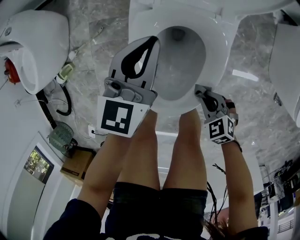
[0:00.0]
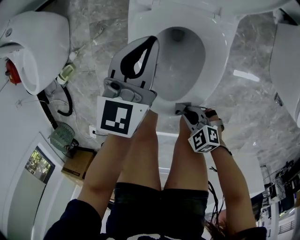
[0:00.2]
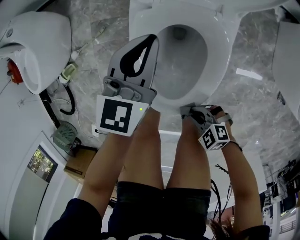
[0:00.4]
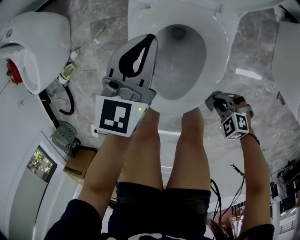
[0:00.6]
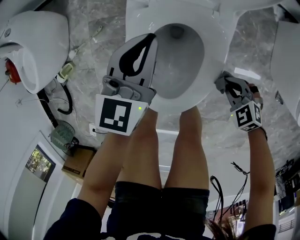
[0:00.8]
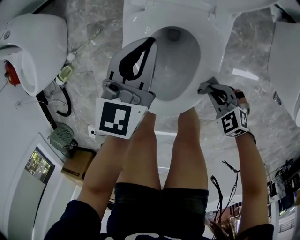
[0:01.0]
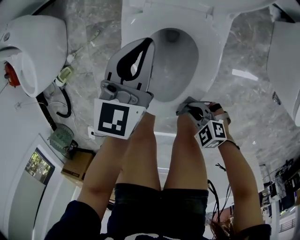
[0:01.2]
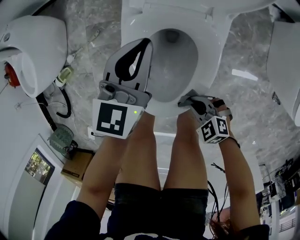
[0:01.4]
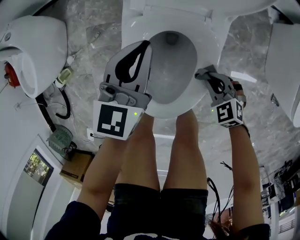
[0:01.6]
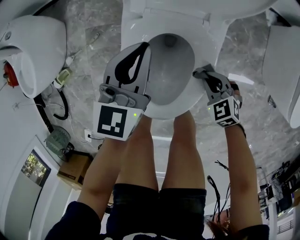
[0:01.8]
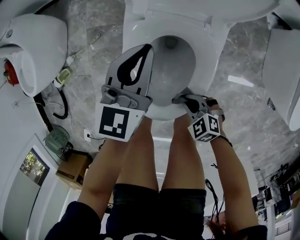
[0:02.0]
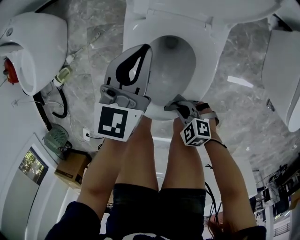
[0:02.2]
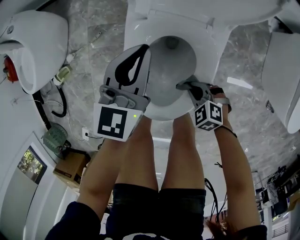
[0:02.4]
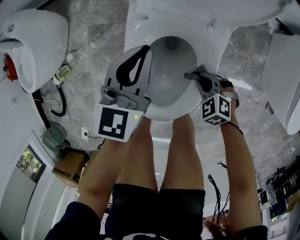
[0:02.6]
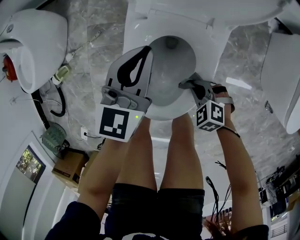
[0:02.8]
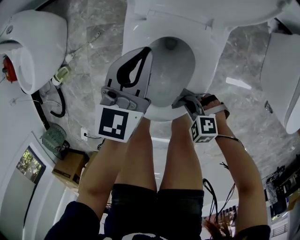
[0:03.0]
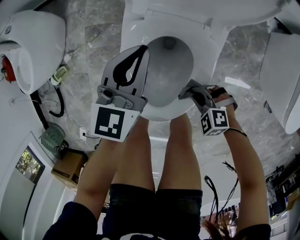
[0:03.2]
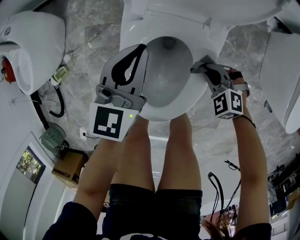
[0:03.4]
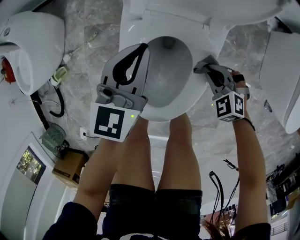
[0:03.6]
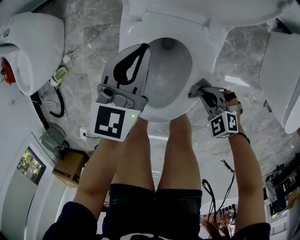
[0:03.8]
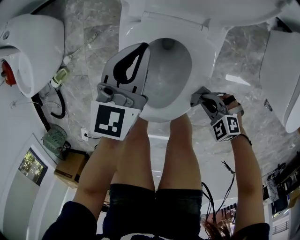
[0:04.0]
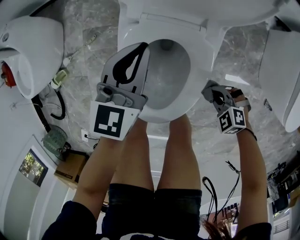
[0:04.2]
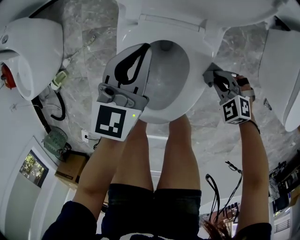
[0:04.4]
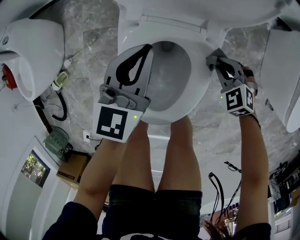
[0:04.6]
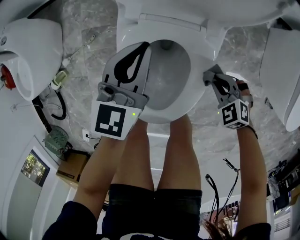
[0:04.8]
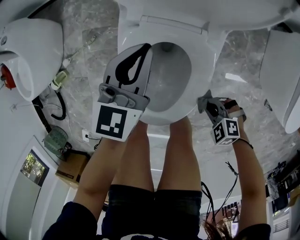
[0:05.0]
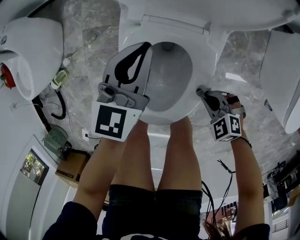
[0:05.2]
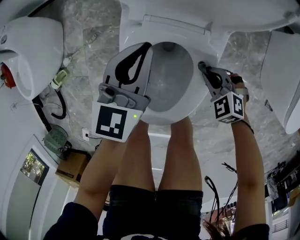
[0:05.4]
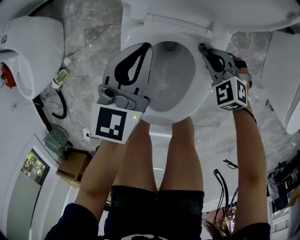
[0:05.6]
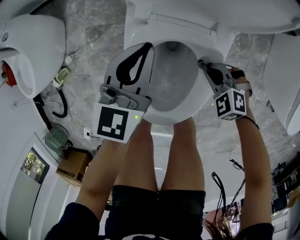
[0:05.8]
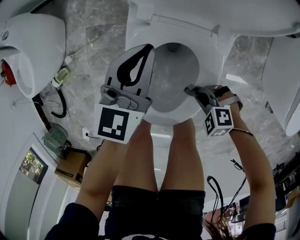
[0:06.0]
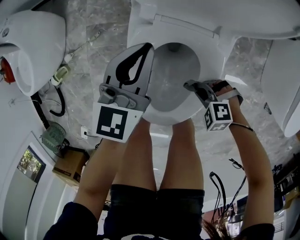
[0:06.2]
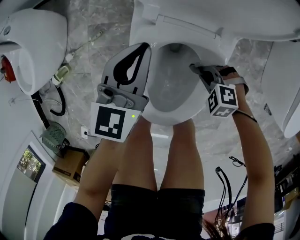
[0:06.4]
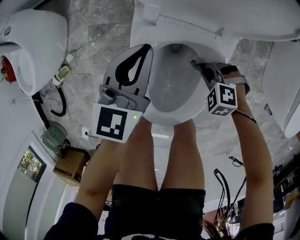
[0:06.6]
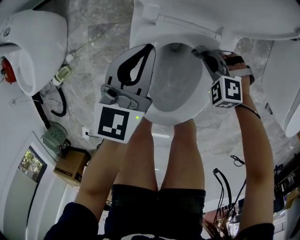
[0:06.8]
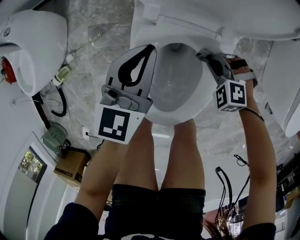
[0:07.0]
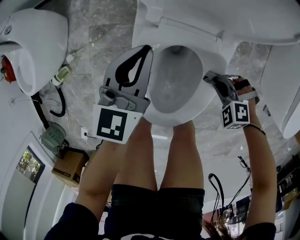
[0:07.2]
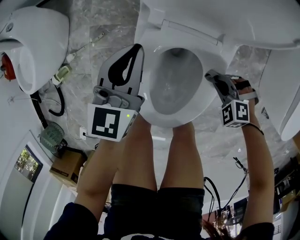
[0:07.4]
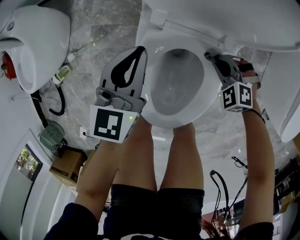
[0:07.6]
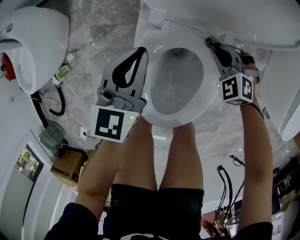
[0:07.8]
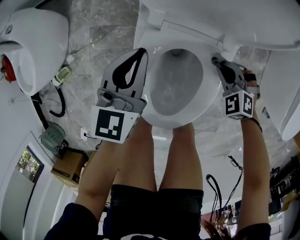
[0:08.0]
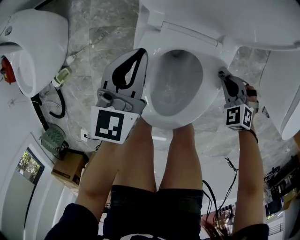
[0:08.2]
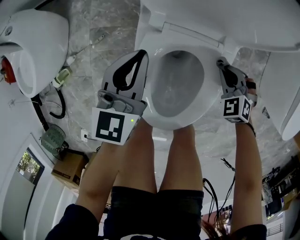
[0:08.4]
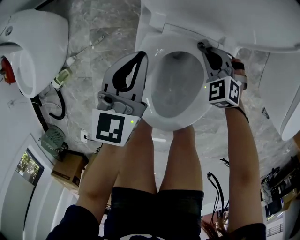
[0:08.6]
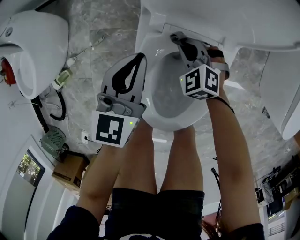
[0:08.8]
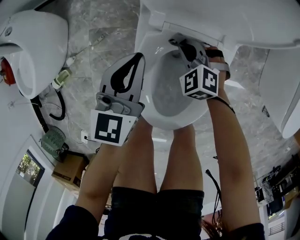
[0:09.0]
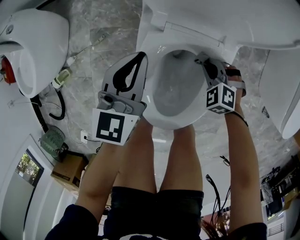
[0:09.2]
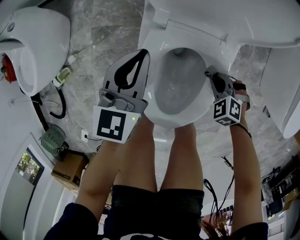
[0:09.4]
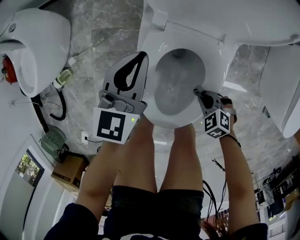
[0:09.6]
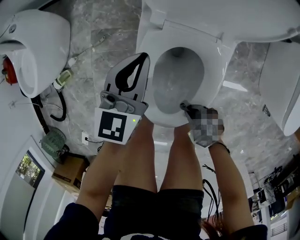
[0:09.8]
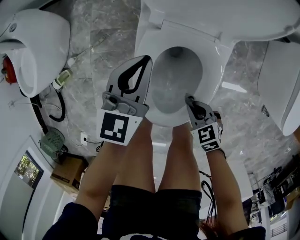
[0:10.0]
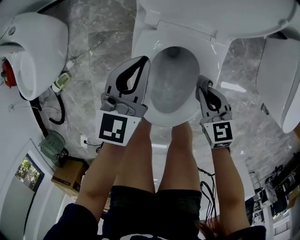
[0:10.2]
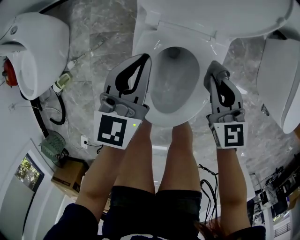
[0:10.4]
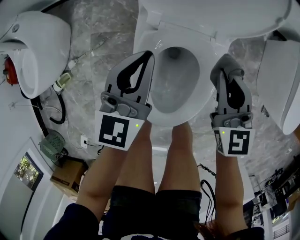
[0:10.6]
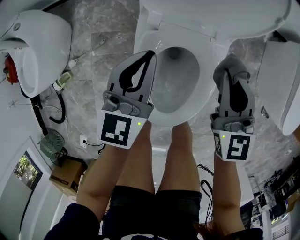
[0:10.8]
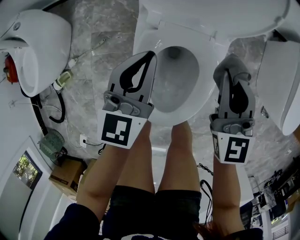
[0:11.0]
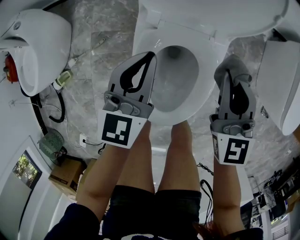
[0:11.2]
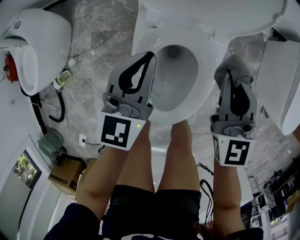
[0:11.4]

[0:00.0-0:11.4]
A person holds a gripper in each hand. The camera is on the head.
0.0 to 1.4 s: The right gripper moves left and right over about 20 cm, changing direction 2 times.
1.4 to 2.8 s: The right gripper swings left and right, approximately 15 cm each way, with 2 reversals.
2.8 to 4.2 s: The right gripper goes left and right, approximately 15 cm each way, reversing 3 times.
4.2 to 5.6 s: The right gripper moves forward and backward over some 20 cm, changing direction 2 times.
5.6 to 7.2 s: The right gripper swivels roughly 30 degrees.
7.2 to 8.6 s: The right gripper swings forward and backward, approximately 15 cm each way, with 2 reversals, and changes its angle by roughly 30 degrees.
8.6 to 10.0 s: The right gripper changes place by approximately 25 cm, and turns by approximately 40 degrees.
10.0 to 11.4 s: The right gripper is displaced upward and forward by some 30 cm, and points its fingers about 40 degrees further upward, while the left gripper moves roughly 5 cm.

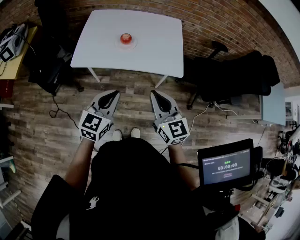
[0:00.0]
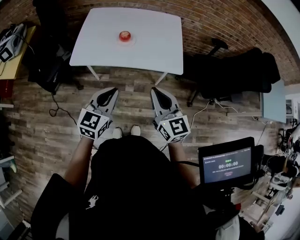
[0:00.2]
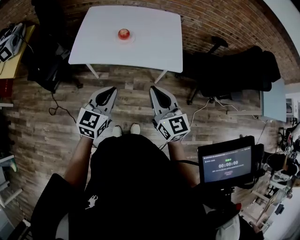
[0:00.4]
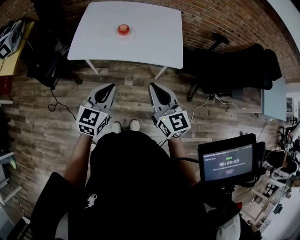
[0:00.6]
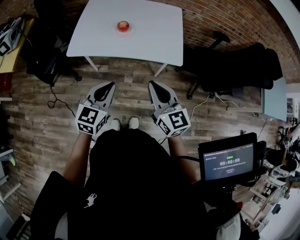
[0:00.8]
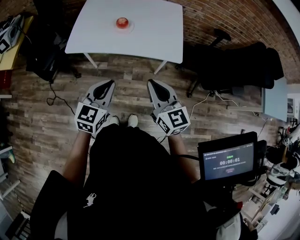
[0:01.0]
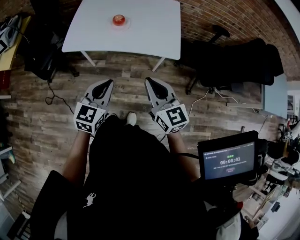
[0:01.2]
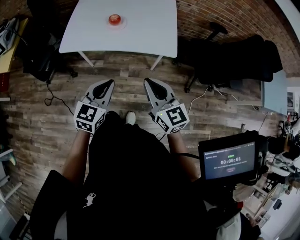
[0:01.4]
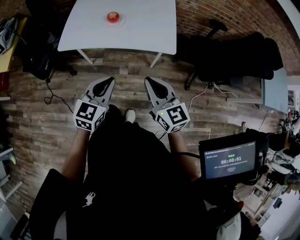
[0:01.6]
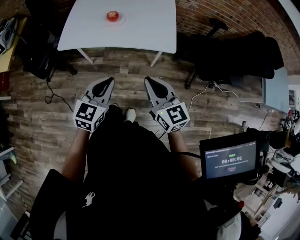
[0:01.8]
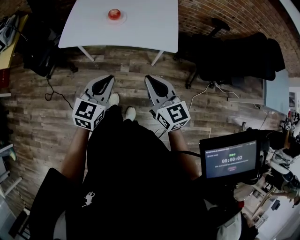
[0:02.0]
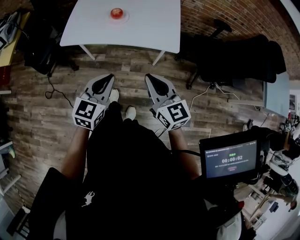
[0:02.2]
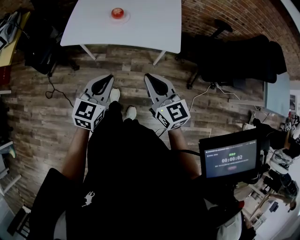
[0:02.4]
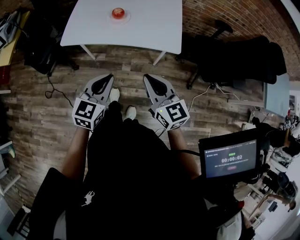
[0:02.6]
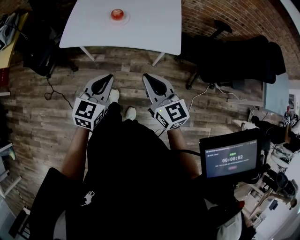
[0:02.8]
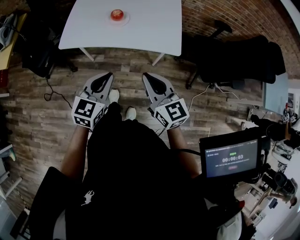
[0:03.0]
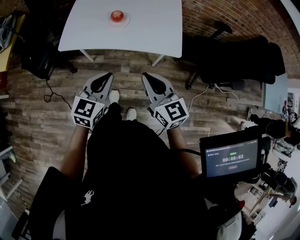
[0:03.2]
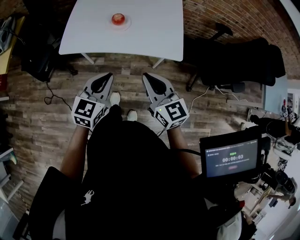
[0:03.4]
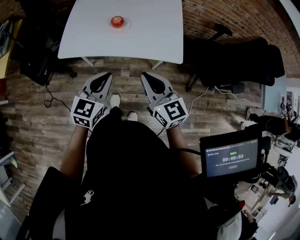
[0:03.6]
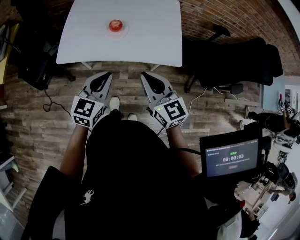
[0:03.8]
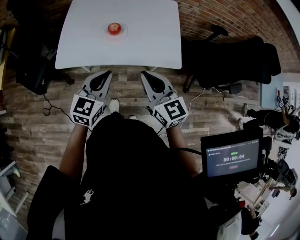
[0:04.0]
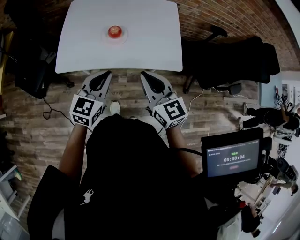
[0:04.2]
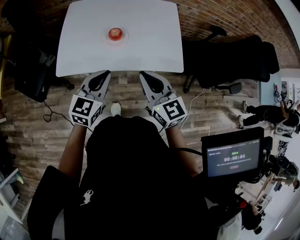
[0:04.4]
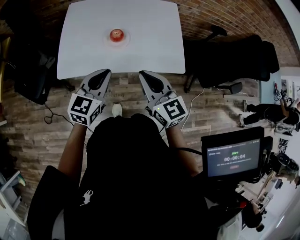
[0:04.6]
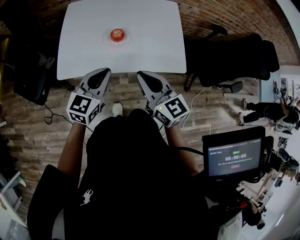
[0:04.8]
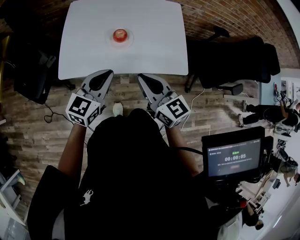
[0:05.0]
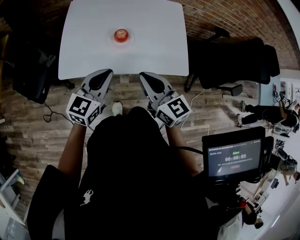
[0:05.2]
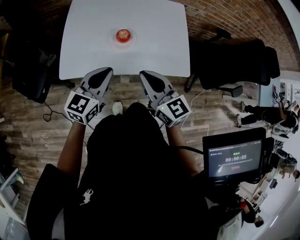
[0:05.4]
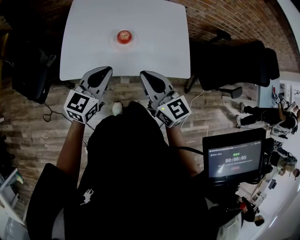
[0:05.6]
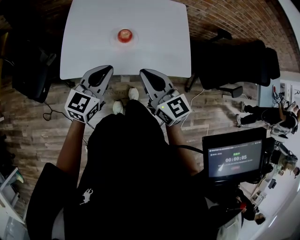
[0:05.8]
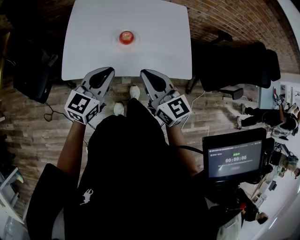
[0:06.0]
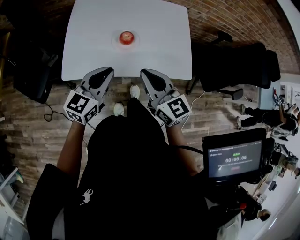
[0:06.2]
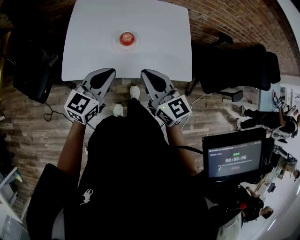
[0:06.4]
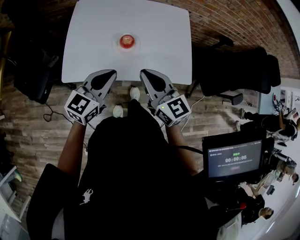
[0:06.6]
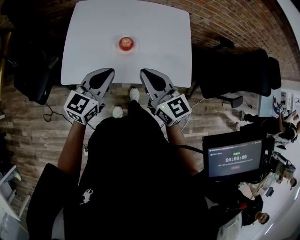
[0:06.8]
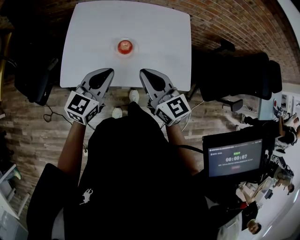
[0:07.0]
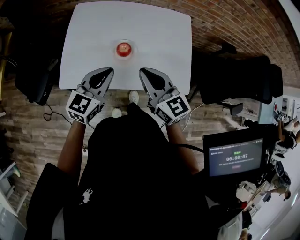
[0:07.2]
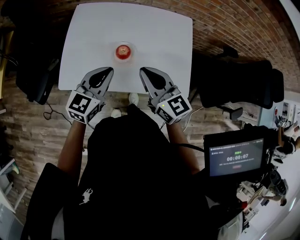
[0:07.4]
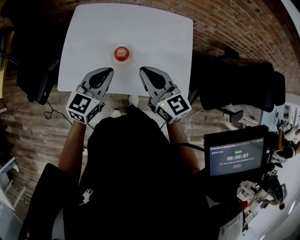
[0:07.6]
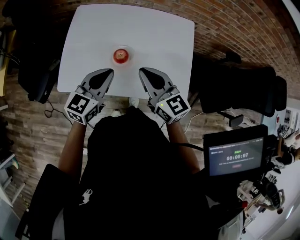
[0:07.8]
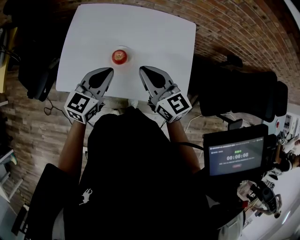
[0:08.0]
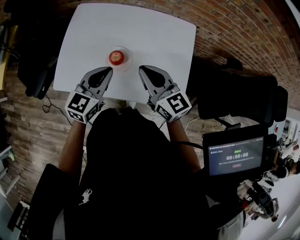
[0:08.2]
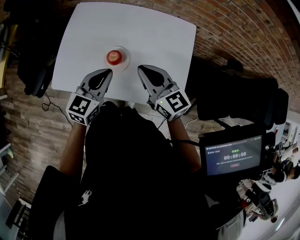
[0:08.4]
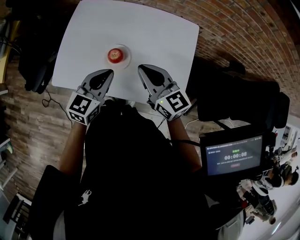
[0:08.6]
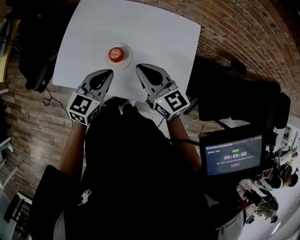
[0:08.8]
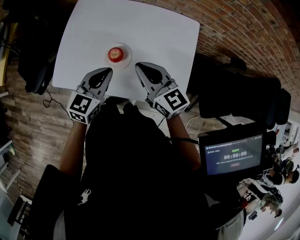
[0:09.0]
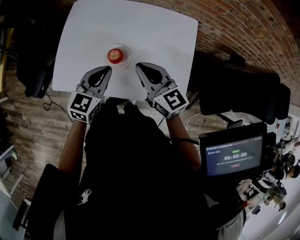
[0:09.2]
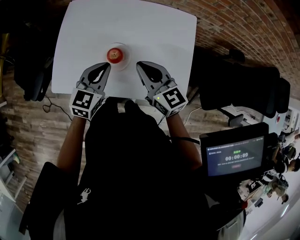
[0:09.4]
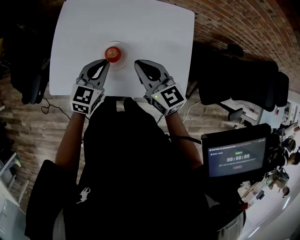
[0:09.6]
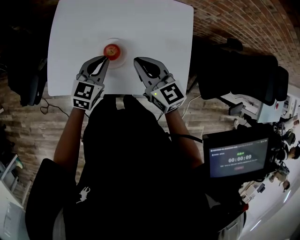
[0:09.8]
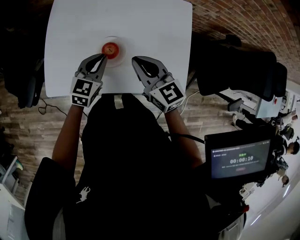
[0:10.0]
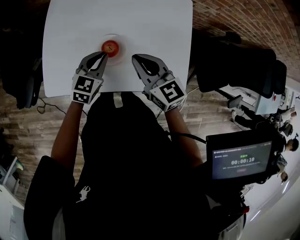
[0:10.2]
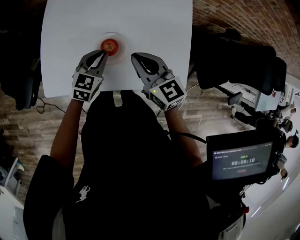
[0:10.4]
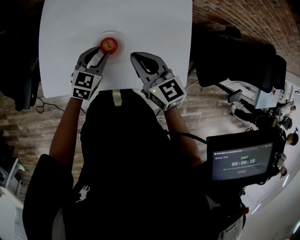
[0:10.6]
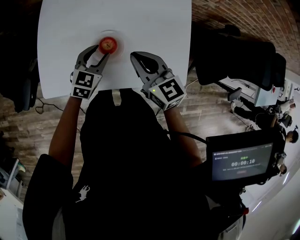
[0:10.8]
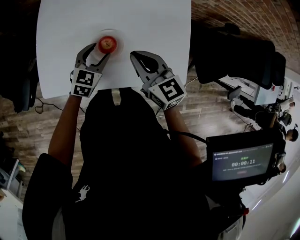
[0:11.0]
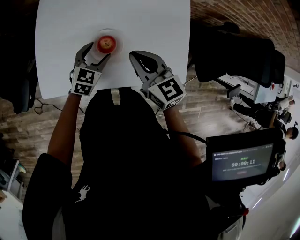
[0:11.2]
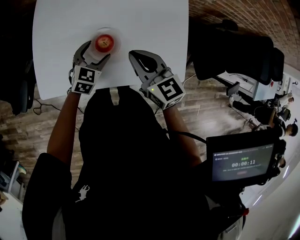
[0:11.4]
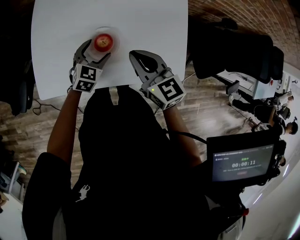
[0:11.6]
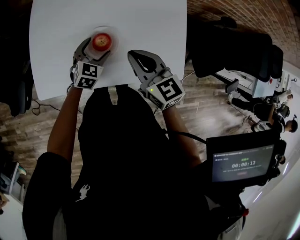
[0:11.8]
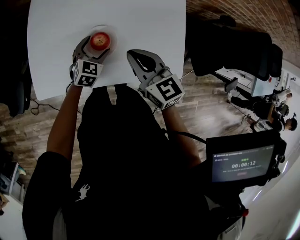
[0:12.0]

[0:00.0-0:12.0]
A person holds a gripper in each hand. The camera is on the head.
0.0 to 1.6 s: The two grippers go some 5 cm to the right.
1.6 to 3.0 s: The grippers make only small movements.
3.0 to 4.4 s: The left gripper moves forward, roughly 15 cm. The right gripper shifts approximately 15 cm forward and to the left.
4.4 to 6.0 s: The two grippers go roughly 10 cm to the left and forward.
6.0 to 7.6 s: The two grippers go approximately 15 cm forward and to the right.
7.6 to 9.0 s: There are only small adjustments of the grippers.
9.0 to 10.4 s: The right gripper moves some 5 cm. The left gripper heads downward and forward, covering some 15 cm.
10.4 to 12.0 s: The left gripper is displaced downward by approximately 10 cm, and opens up.

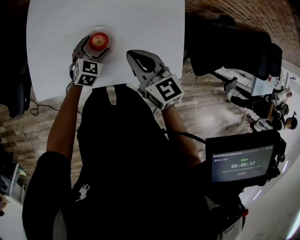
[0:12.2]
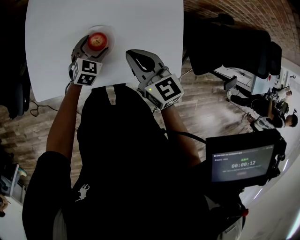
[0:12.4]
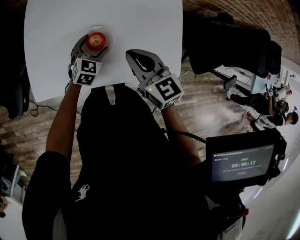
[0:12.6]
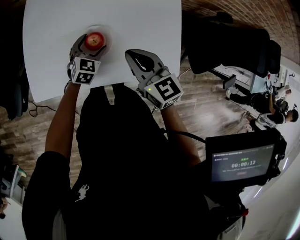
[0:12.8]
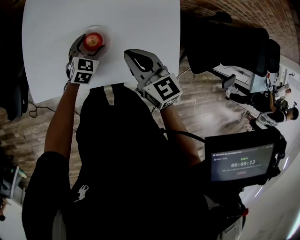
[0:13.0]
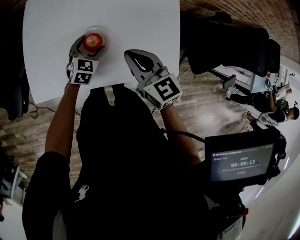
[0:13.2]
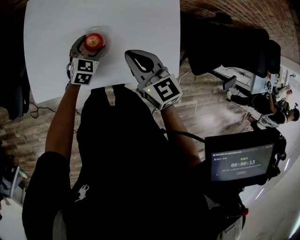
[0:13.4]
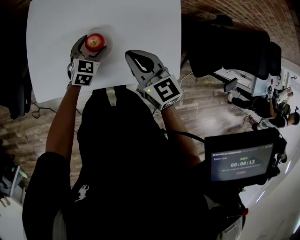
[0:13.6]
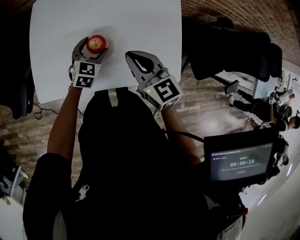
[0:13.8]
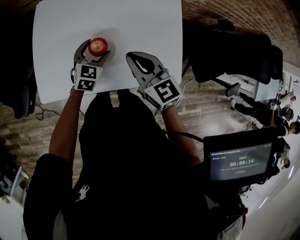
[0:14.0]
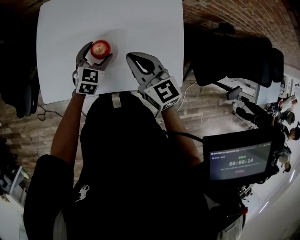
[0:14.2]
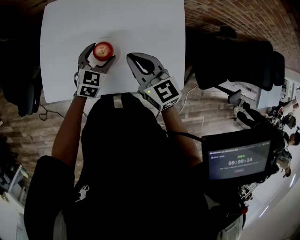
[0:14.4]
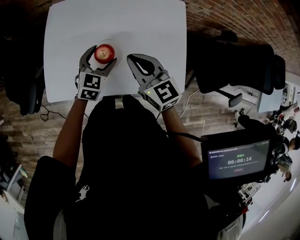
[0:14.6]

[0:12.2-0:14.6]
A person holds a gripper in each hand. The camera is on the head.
12.2 to 13.4 s: Neither gripper changes place.
13.4 to 14.6 s: The left gripper moves upward, about 10 cm.
